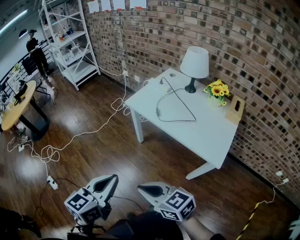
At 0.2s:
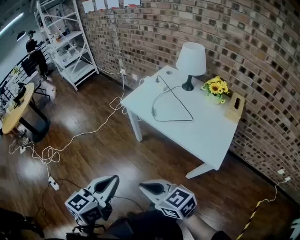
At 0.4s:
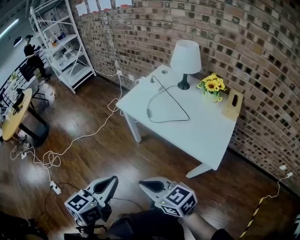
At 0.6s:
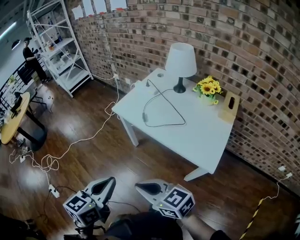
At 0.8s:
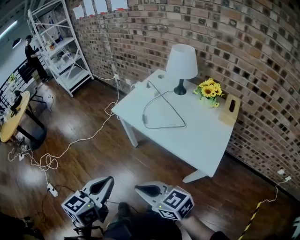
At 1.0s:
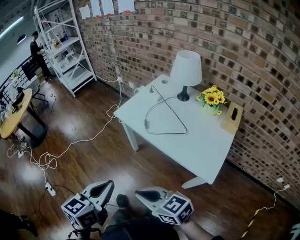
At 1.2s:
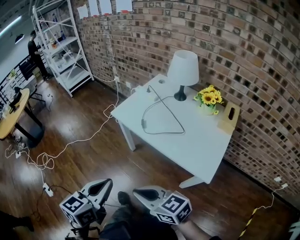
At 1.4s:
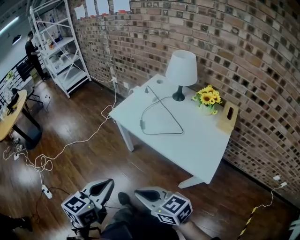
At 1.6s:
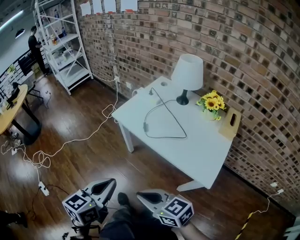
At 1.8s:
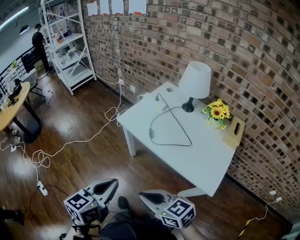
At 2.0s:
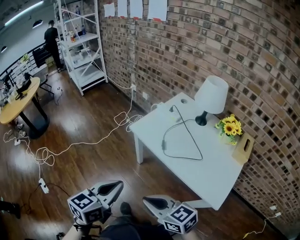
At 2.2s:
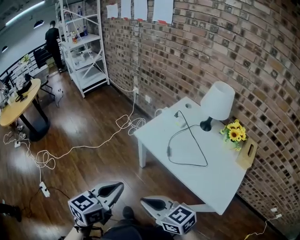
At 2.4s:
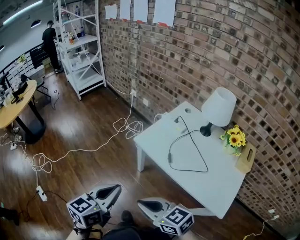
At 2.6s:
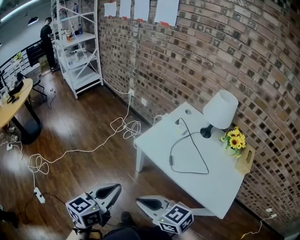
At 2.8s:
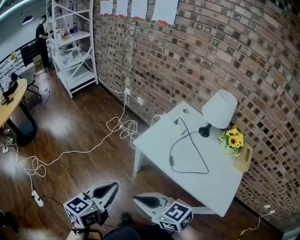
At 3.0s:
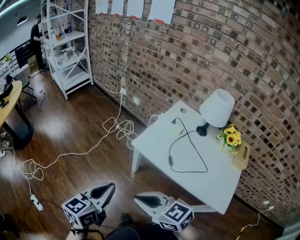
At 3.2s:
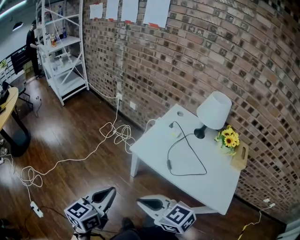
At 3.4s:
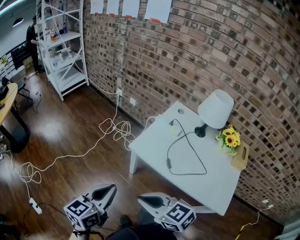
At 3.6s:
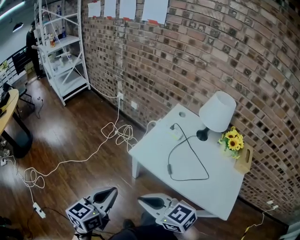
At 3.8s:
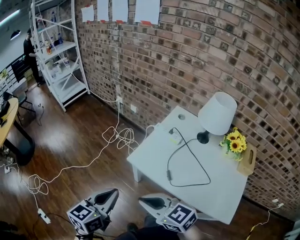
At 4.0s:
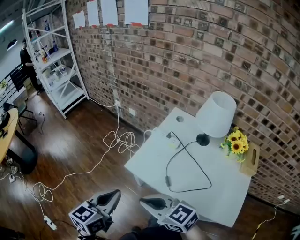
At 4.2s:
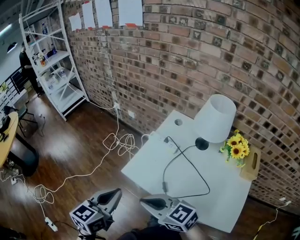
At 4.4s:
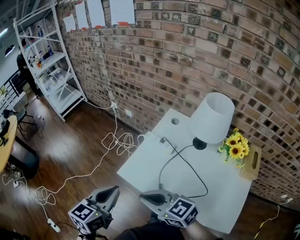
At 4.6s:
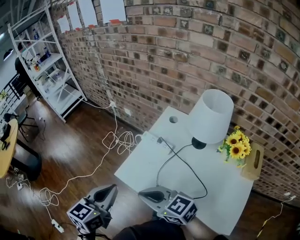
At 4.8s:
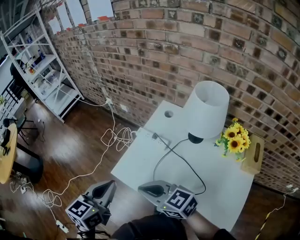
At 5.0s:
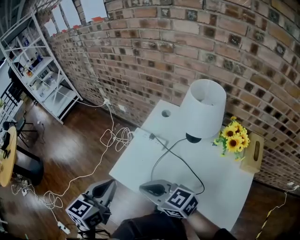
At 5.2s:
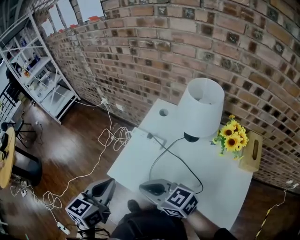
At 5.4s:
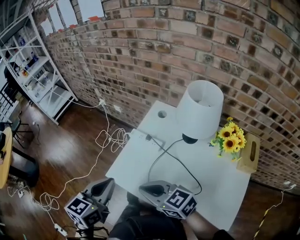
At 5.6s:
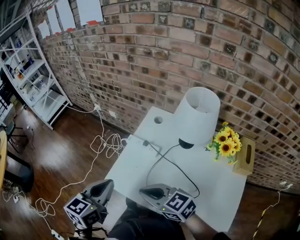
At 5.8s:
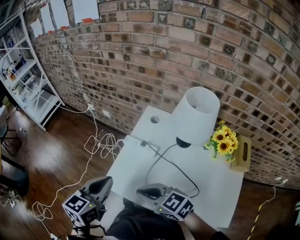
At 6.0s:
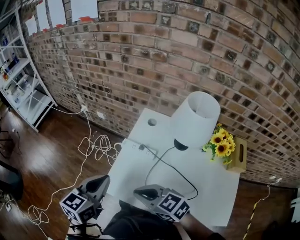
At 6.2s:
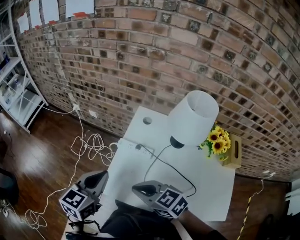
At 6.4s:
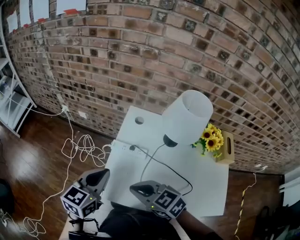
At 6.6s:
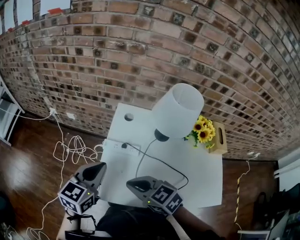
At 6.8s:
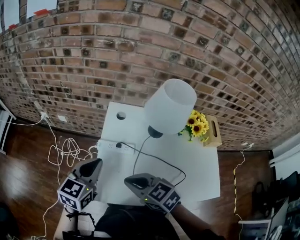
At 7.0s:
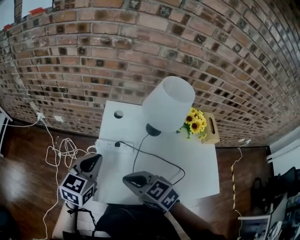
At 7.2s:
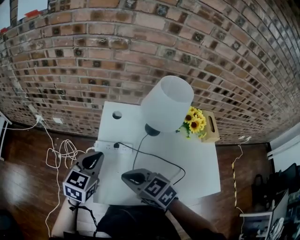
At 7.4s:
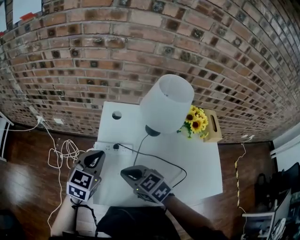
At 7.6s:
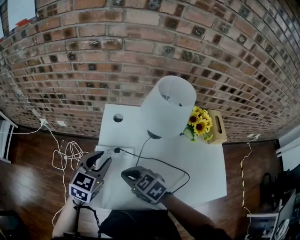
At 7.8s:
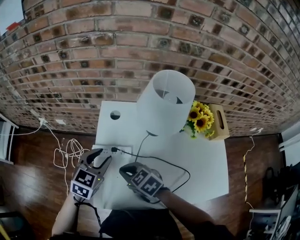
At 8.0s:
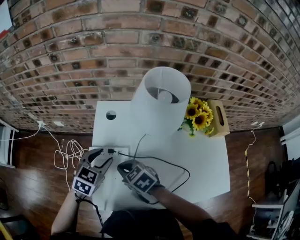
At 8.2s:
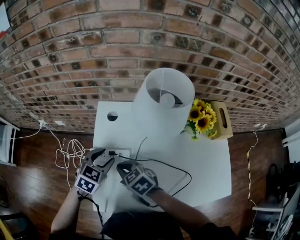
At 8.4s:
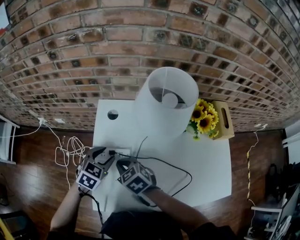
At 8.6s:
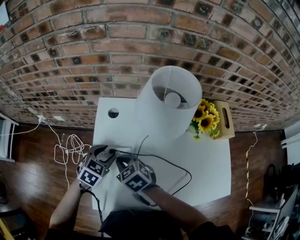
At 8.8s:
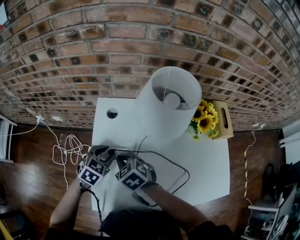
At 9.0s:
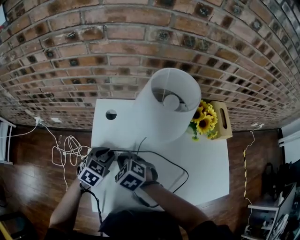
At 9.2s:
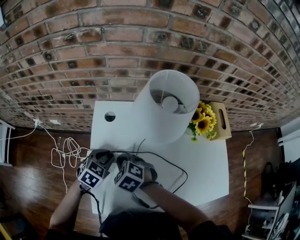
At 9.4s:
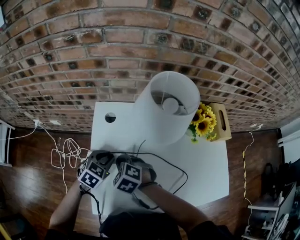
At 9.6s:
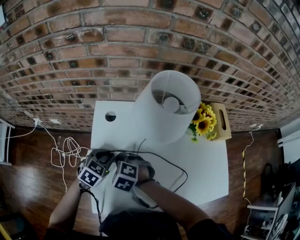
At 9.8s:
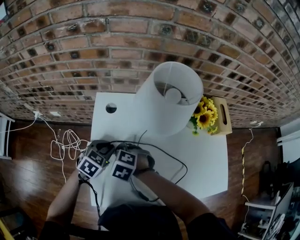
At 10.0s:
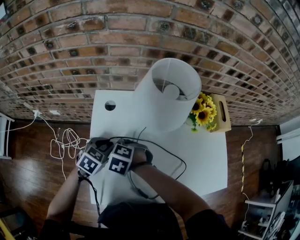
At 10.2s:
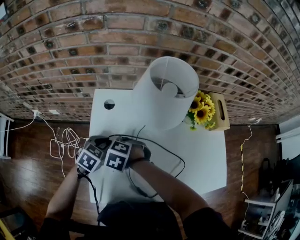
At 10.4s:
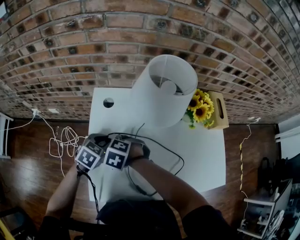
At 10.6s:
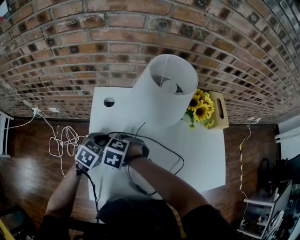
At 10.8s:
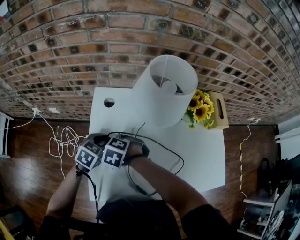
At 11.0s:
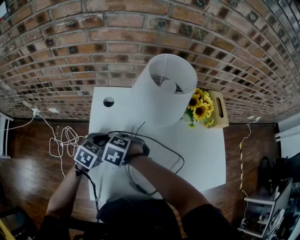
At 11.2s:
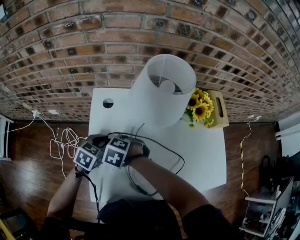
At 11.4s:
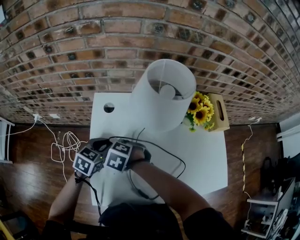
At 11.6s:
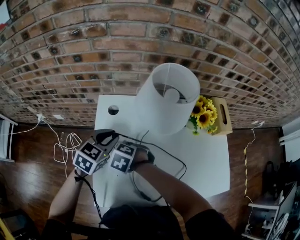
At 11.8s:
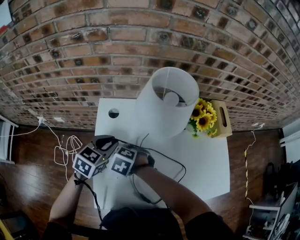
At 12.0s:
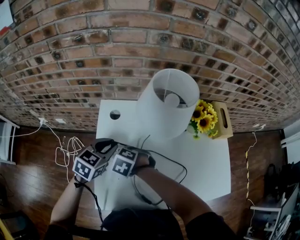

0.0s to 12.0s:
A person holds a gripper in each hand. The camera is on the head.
0.0s to 1.6s: The two grippers go roughly 10 cm to the right and forward.
1.6s to 3.0s: The two grippers go some 25 cm forward and to the left.
3.0s to 4.4s: The grippers both shift forward and to the right by some 20 cm.
4.4s to 6.0s: Both grippers travel together forward and to the right, about 10 cm.
6.0s to 7.6s: The right gripper is displaced forward and downward by roughly 15 cm, and rotates approximately 30 degrees, while the left gripper shifts roughly 20 cm forward, to the right and downward, turns by about 30 degrees, and opens its fingers.
7.6s to 9.0s: The right gripper shifts approximately 10 cm forward and downward, and turns by about 20 degrees; the left gripper travels downward by about 15 cm, and changes its angle by about 20 degrees.
9.0s to 10.4s: The right gripper swivels some 20 degrees.
10.4s to 12.0s: The left gripper goes roughly 5 cm upward.

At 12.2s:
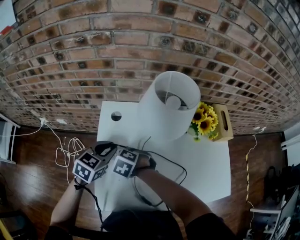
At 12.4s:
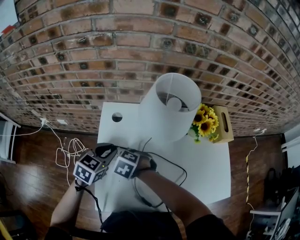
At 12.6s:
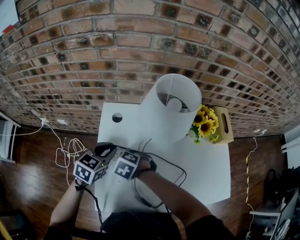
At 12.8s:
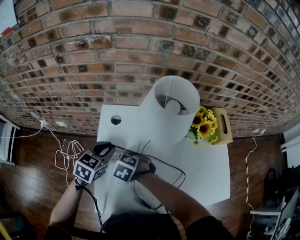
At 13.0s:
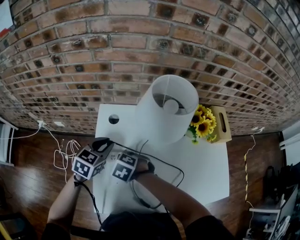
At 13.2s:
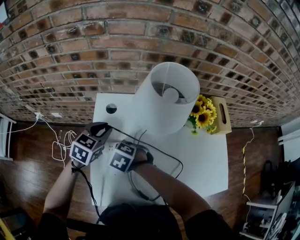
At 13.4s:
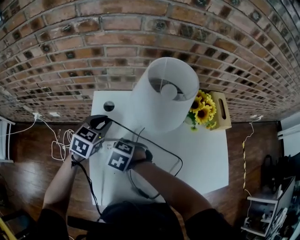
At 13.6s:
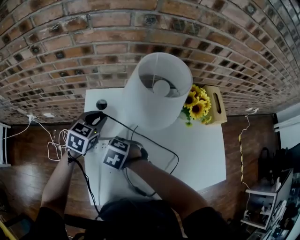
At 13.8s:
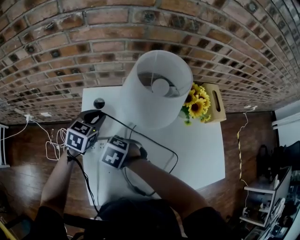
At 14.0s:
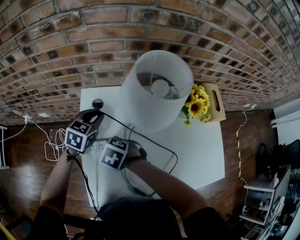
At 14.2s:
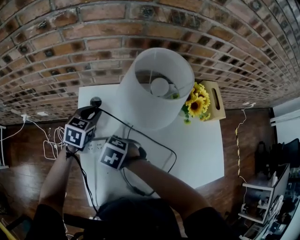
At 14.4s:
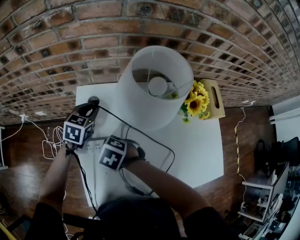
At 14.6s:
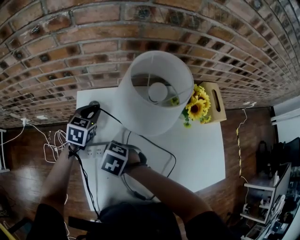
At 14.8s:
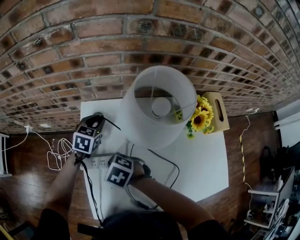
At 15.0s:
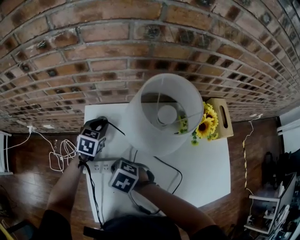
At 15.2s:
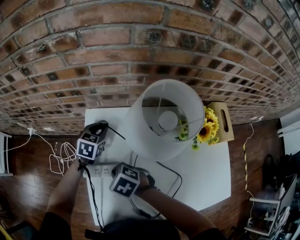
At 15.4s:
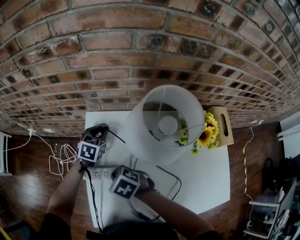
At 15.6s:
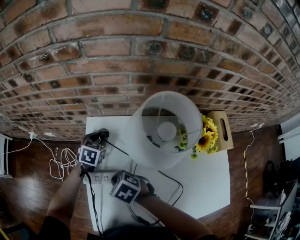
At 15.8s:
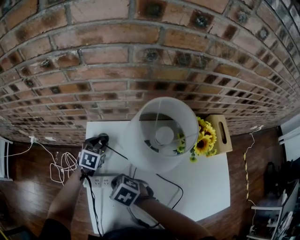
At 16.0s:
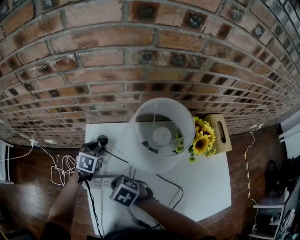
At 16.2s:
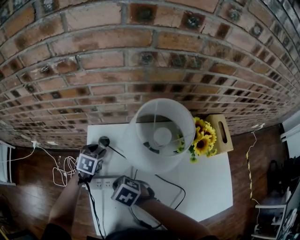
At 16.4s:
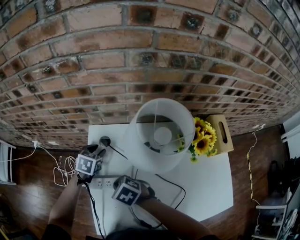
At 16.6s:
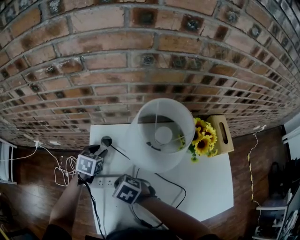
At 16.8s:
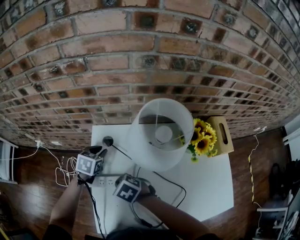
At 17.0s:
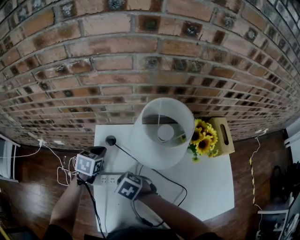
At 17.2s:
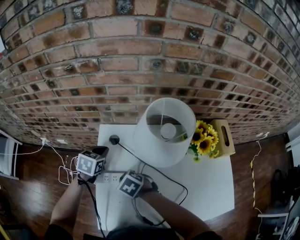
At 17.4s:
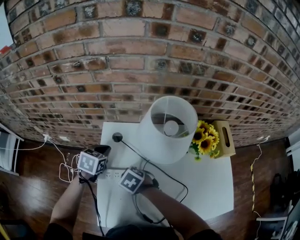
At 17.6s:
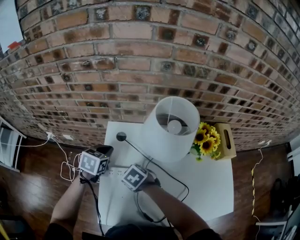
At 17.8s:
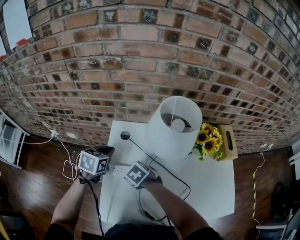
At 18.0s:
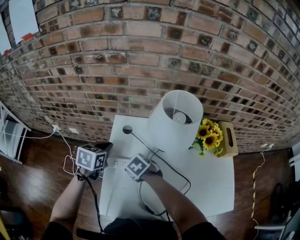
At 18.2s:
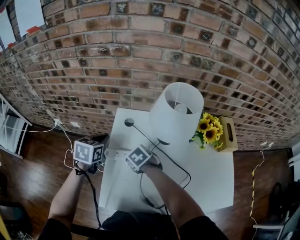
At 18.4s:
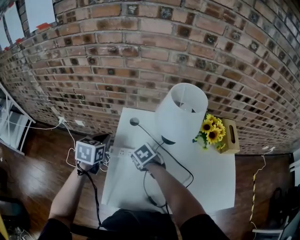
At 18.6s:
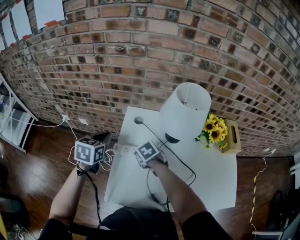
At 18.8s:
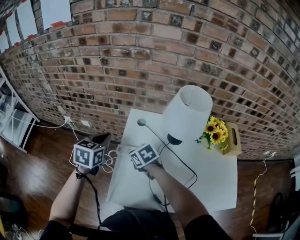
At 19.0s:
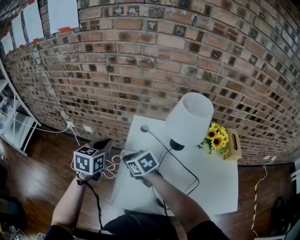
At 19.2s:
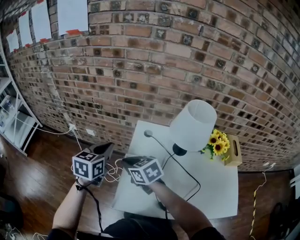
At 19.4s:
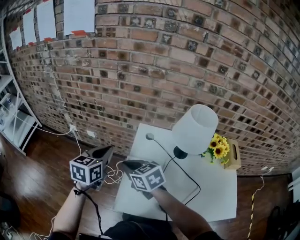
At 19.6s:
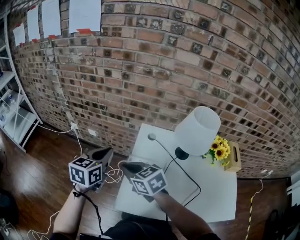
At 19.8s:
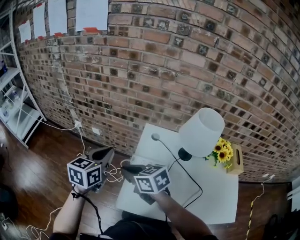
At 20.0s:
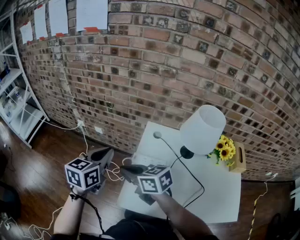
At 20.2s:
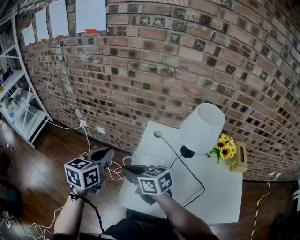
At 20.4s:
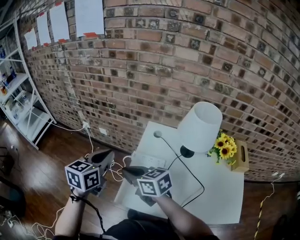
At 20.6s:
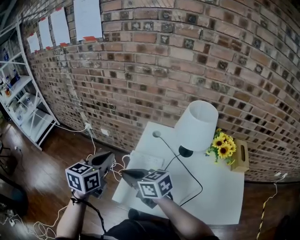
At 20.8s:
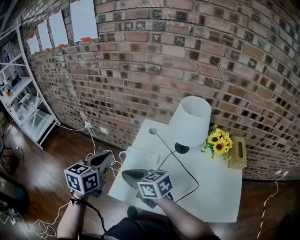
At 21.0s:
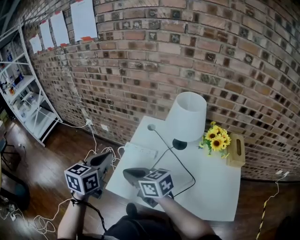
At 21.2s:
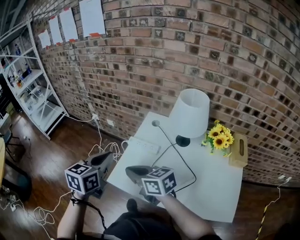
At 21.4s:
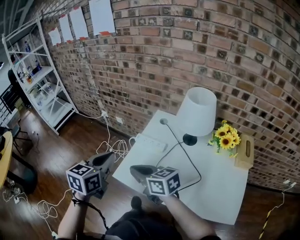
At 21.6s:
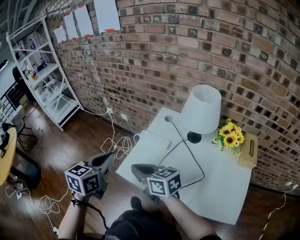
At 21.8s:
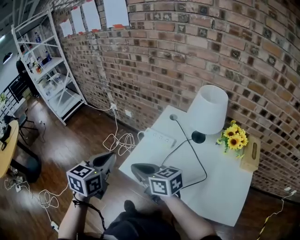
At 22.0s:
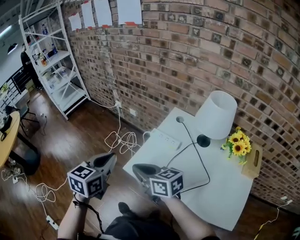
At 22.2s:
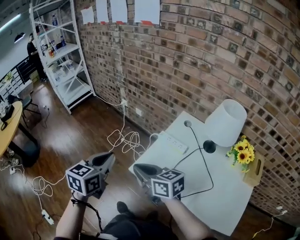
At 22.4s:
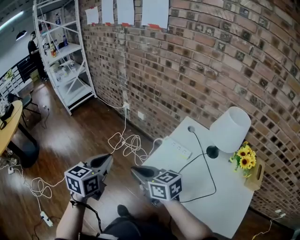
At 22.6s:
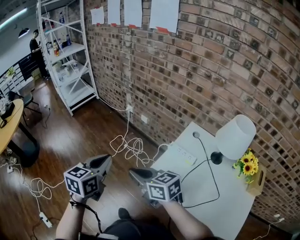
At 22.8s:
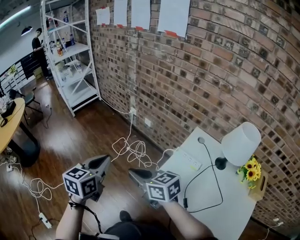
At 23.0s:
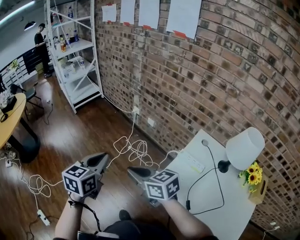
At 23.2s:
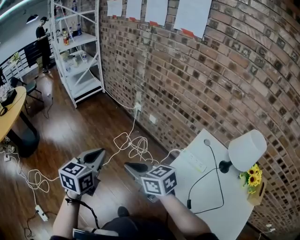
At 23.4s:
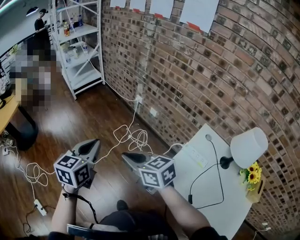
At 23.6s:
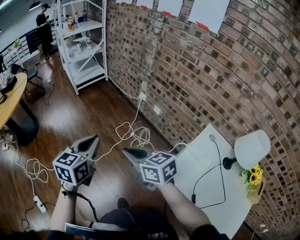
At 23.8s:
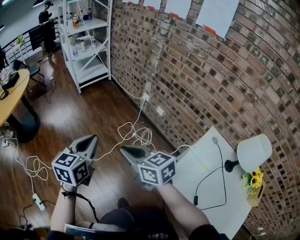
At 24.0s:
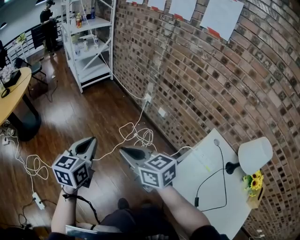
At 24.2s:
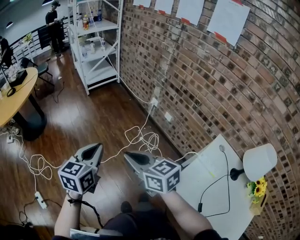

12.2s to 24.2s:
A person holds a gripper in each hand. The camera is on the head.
12.2s to 13.8s: The left gripper heads forward, covering roughly 10 cm.
13.8s to 15.2s: The left gripper heads forward and downward, covering roughly 10 cm.
15.2s to 16.6s: The grippers stay close to where they were, moving slightly.
16.6s to 18.2s: The left gripper heads upward, to the left and backward, covering some 15 cm, and closes its fingers.
18.2s to 19.8s: The right gripper heads upward and to the left, covering about 25 cm, and angles its fingers upward, by approximately 30 degrees. The left gripper heads to the left, upward and backward, covering about 20 cm, and turns by some 20 degrees.
19.8s to 21.2s: The left gripper is displaced backward by roughly 15 cm. Meanwhile the right gripper goes roughly 15 cm backward and to the right.
21.2s to 22.6s: The grippers both shift to the left by some 20 cm.
22.6s to 24.2s: The two grippers go approximately 20 cm to the left and forward.
